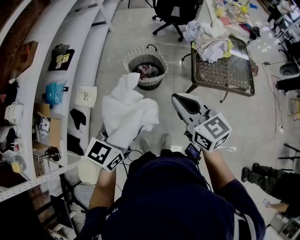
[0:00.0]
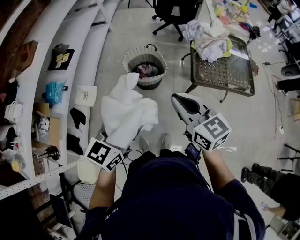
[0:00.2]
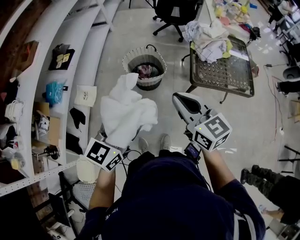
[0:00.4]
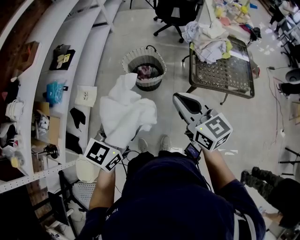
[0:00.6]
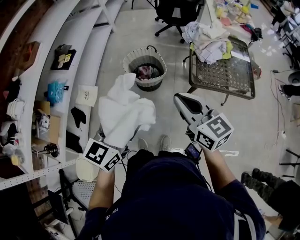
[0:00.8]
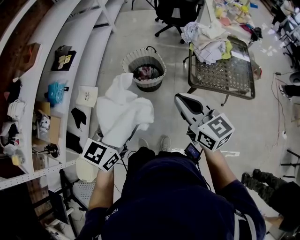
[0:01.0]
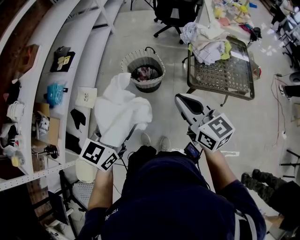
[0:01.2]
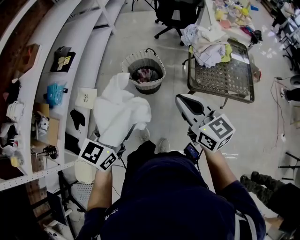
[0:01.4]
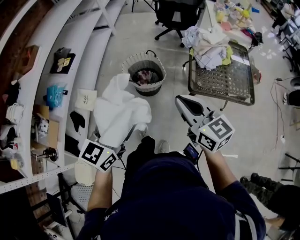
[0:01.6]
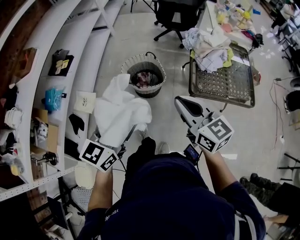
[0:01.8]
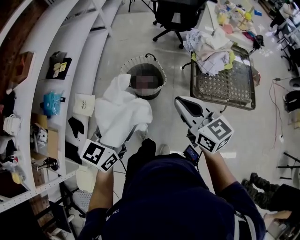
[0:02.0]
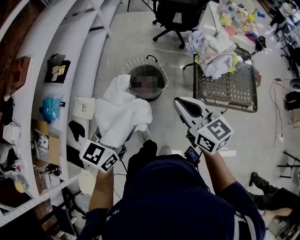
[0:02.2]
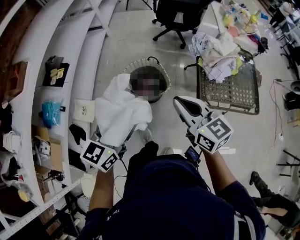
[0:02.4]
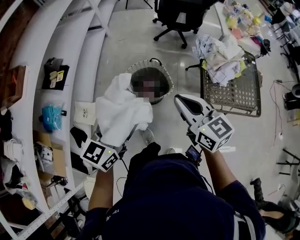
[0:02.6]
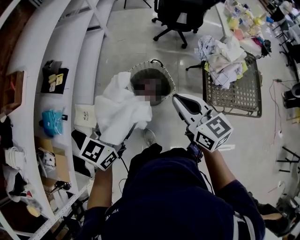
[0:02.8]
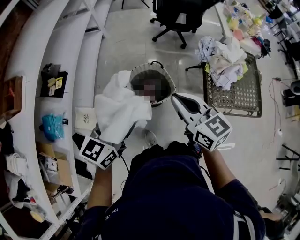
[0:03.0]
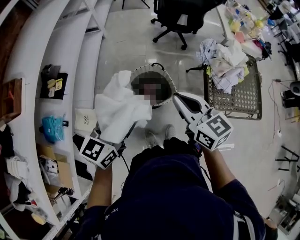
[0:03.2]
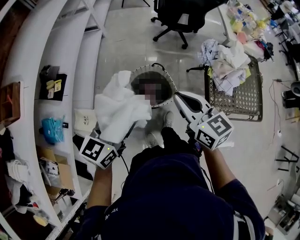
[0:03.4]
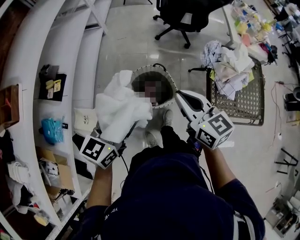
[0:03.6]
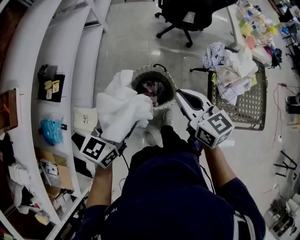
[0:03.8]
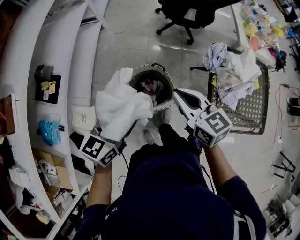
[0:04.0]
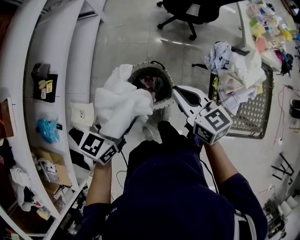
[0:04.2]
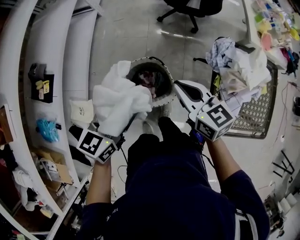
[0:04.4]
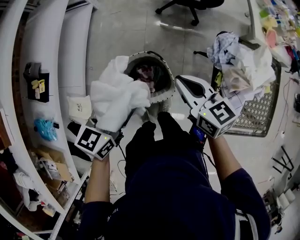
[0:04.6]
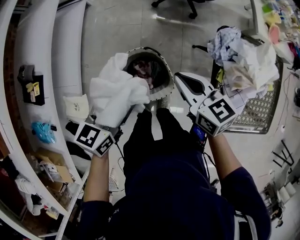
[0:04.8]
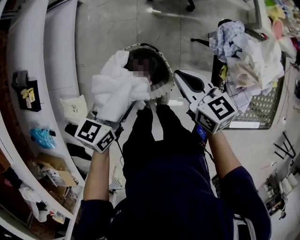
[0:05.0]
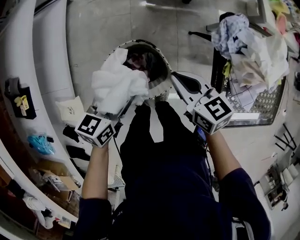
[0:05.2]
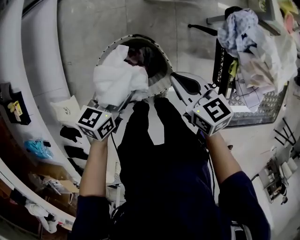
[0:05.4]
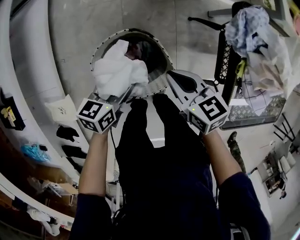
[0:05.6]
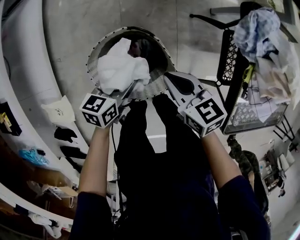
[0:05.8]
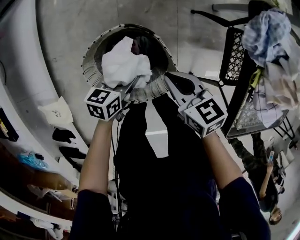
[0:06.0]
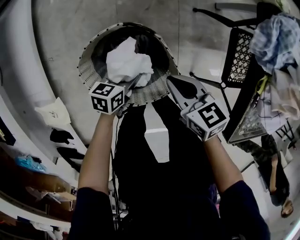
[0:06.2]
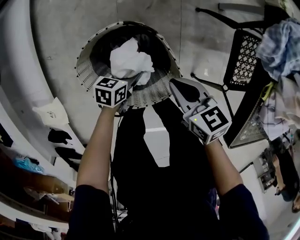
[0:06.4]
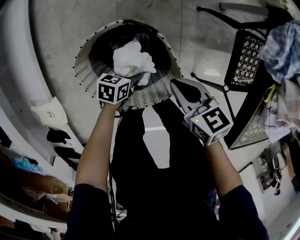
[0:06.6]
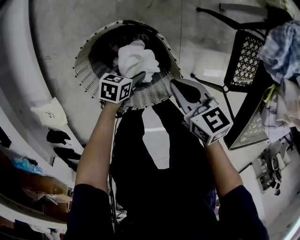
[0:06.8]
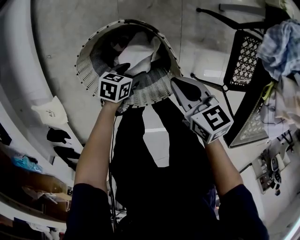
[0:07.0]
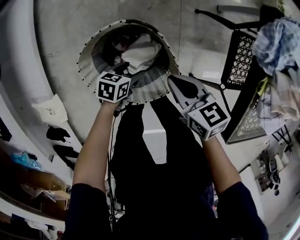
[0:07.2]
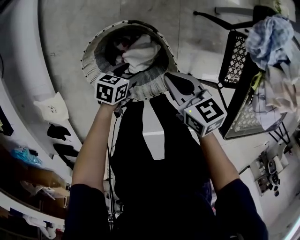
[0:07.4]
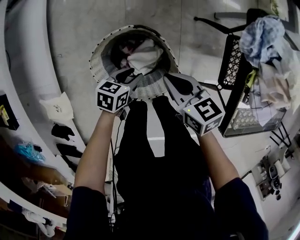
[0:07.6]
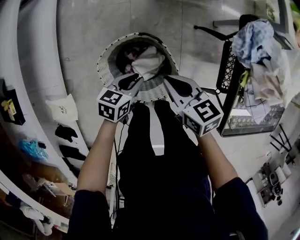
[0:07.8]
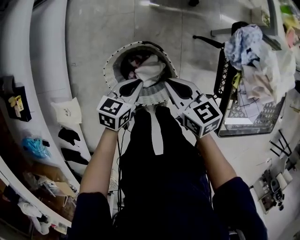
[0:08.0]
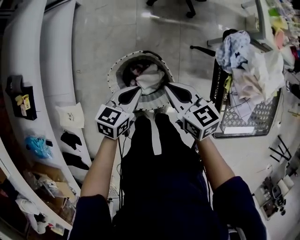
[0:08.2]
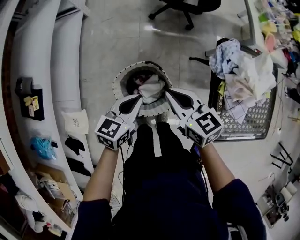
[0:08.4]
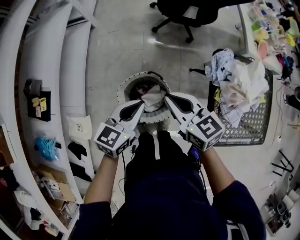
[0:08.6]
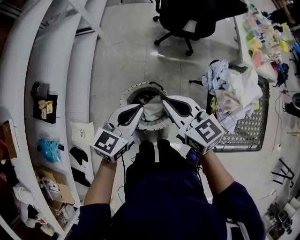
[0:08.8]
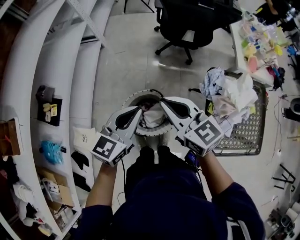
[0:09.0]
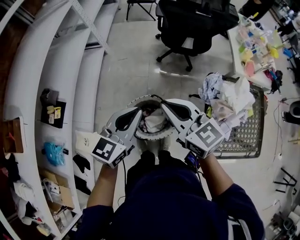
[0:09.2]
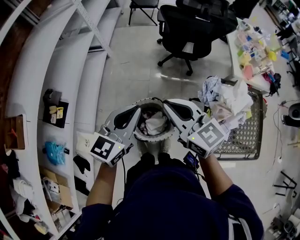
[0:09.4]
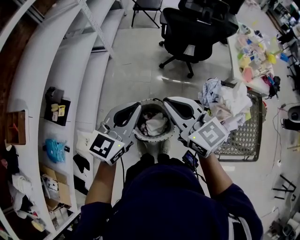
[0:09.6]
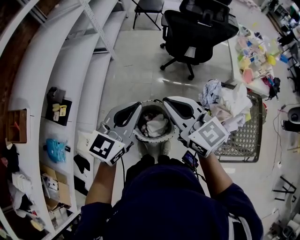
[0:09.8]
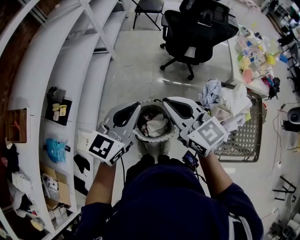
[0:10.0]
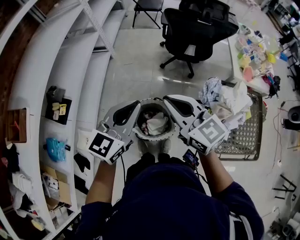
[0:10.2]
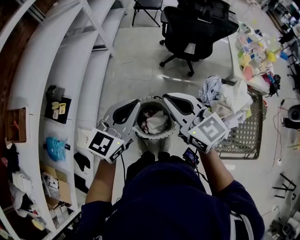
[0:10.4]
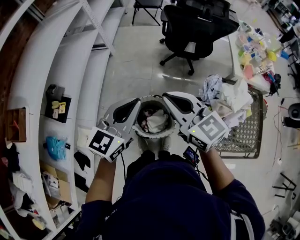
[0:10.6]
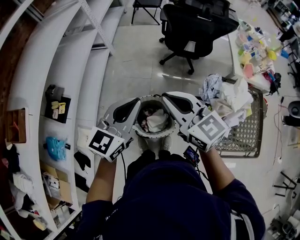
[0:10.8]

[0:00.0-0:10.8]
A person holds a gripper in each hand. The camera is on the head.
0:00.0 to 0:01.6: The right gripper heads to the right, covering about 5 cm.
0:01.6 to 0:03.0: The grippers both shift forward and to the left by roughly 30 cm.
0:03.0 to 0:04.6: The grippers both shift forward and downward by some 30 cm.
0:04.6 to 0:06.2: The grippers both shift downward by some 40 cm. The left gripper turns by about 30 degrees; the right gripper swivels roughly 20 degrees.
0:06.2 to 0:07.8: Both grippers move upward, about 10 cm. The left gripper closes its fingers.
0:07.8 to 0:09.2: Both grippers travel together upward, some 40 cm. The right gripper changes its angle by some 40 degrees. Meanwhile the left gripper swivels some 40 degrees.
0:09.2 to 0:10.8: The left gripper moves upward, approximately 5 cm.

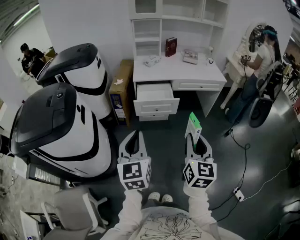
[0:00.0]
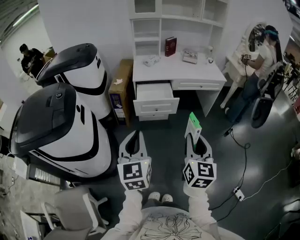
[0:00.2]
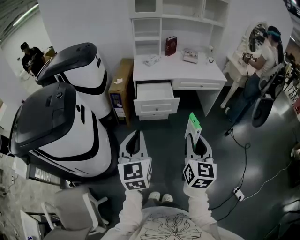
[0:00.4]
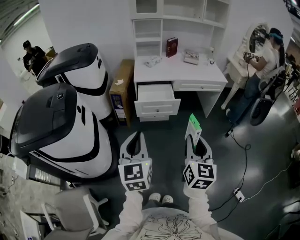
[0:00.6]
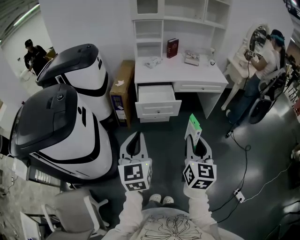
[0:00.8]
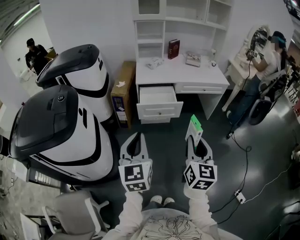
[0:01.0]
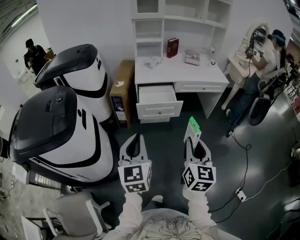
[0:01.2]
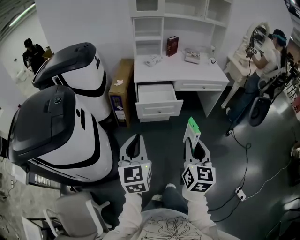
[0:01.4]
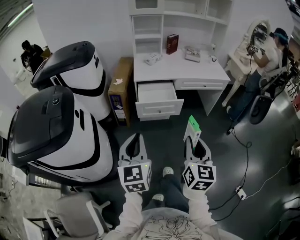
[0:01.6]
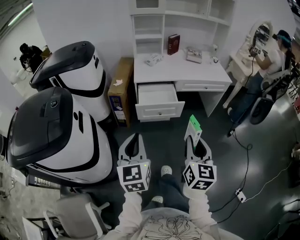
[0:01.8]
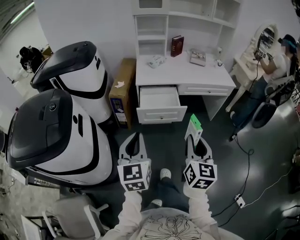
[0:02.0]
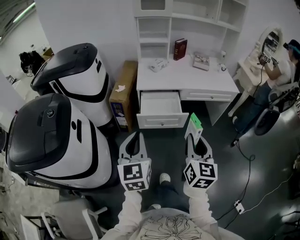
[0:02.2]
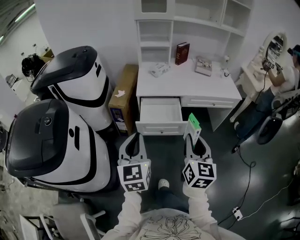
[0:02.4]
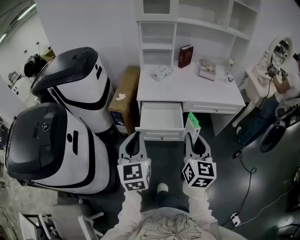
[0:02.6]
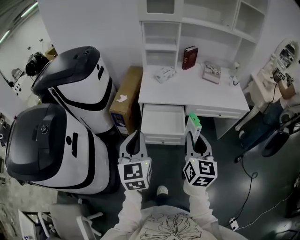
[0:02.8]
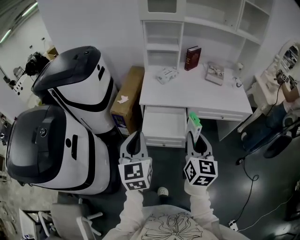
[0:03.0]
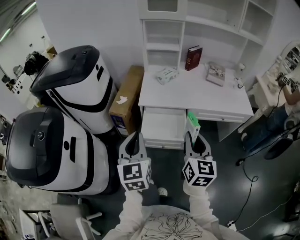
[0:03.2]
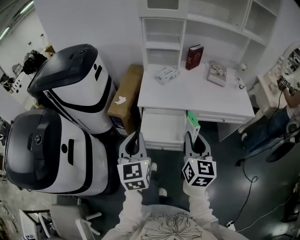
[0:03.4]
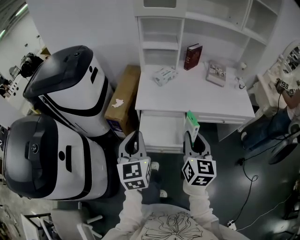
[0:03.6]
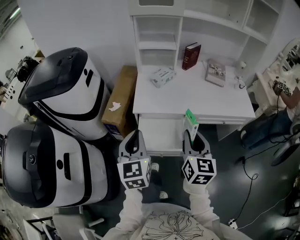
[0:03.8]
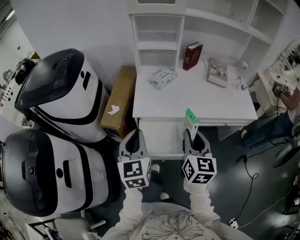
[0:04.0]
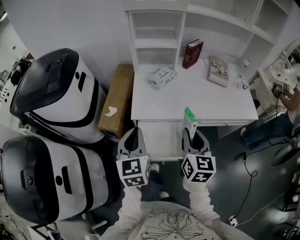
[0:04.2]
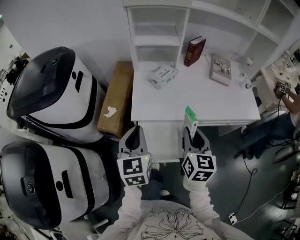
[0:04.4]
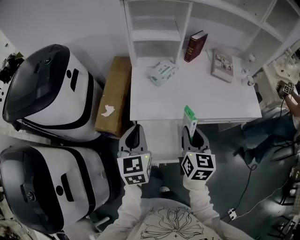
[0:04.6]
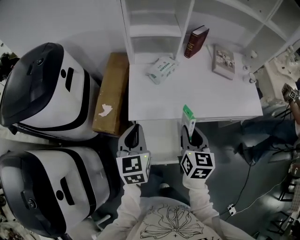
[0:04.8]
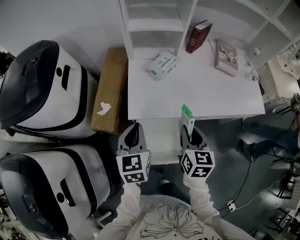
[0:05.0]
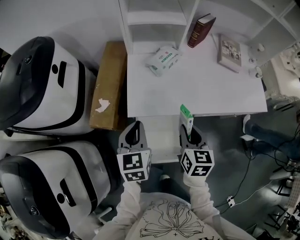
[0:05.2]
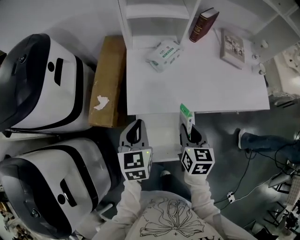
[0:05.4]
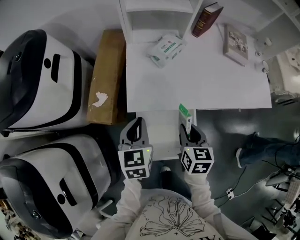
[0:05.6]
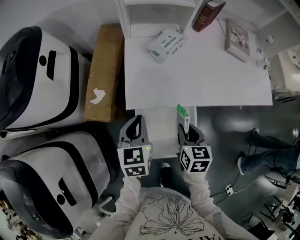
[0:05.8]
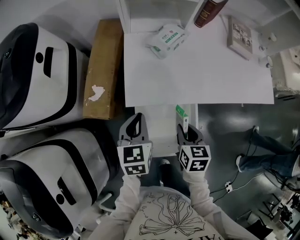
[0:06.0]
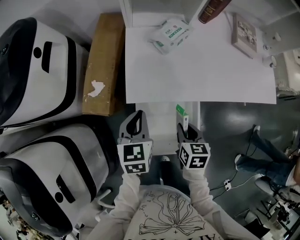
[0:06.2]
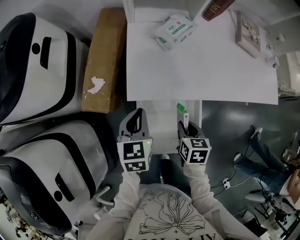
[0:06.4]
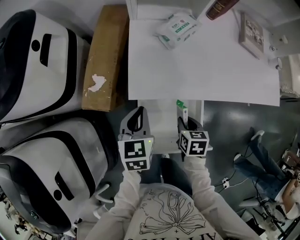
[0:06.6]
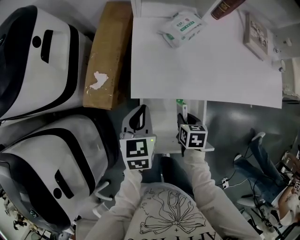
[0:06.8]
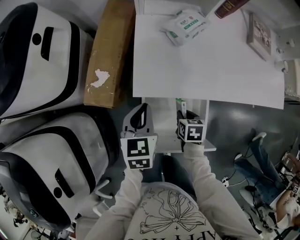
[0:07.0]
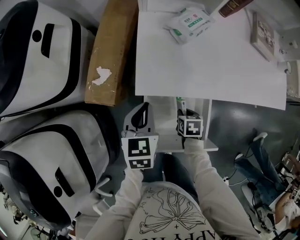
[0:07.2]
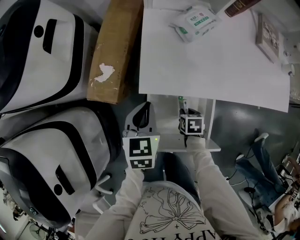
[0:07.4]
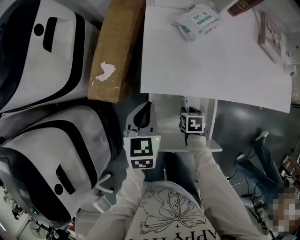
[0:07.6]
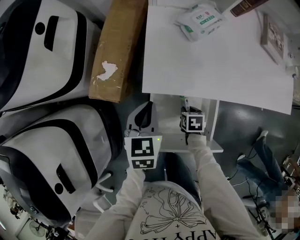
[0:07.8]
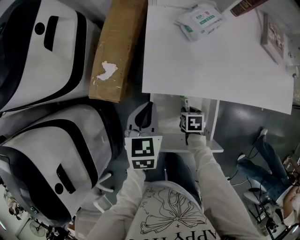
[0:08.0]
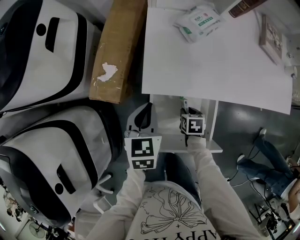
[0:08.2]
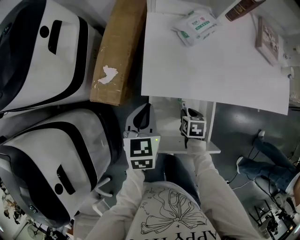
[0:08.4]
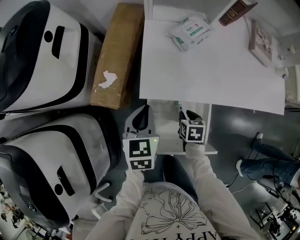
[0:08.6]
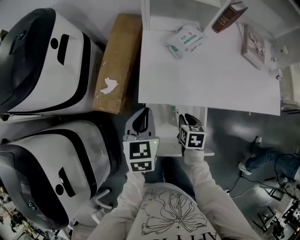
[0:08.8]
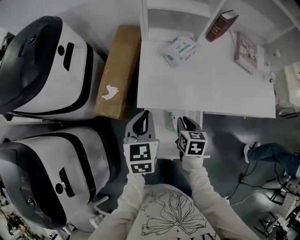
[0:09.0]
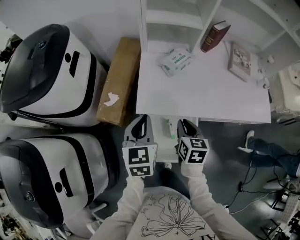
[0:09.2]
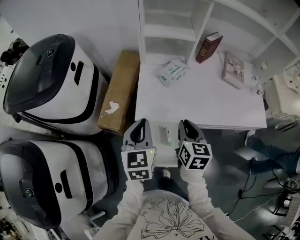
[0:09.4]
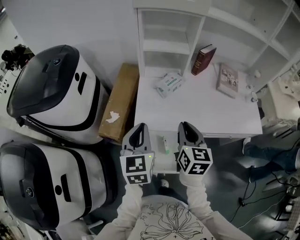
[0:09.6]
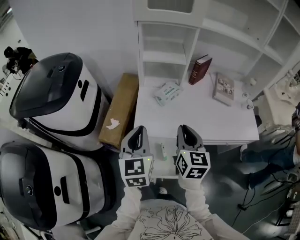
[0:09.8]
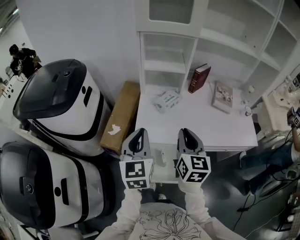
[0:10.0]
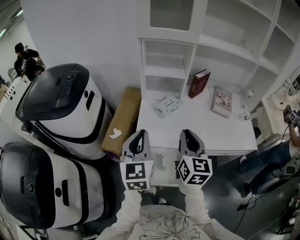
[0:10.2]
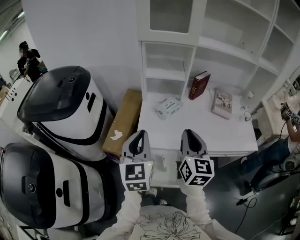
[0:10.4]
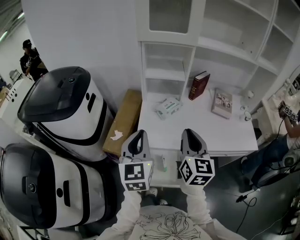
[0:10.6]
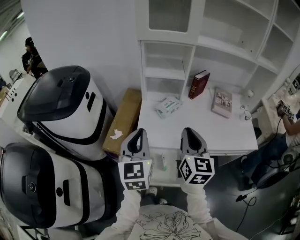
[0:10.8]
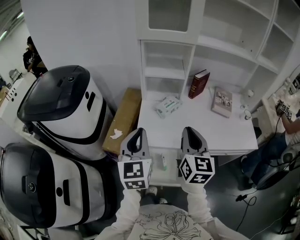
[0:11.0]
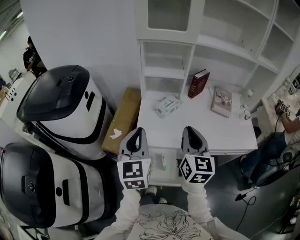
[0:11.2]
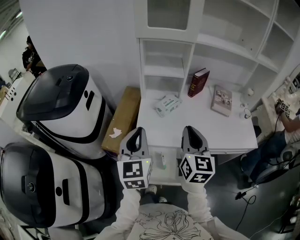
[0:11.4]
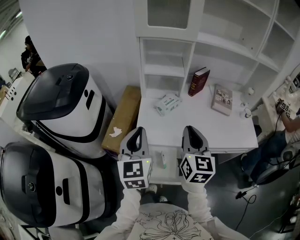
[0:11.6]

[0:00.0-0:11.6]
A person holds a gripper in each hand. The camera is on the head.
0:00.0 to 0:01.4: The right gripper shifts by roughly 5 cm, while the left gripper changes place by approximately 5 cm.
0:01.4 to 0:02.8: Both grippers move forward, some 30 cm.
0:02.8 to 0:04.4: Both grippers travel together forward, roughly 30 cm.
0:04.4 to 0:05.8: The right gripper is displaced downward by about 20 cm, and changes its angle by about 30 degrees; the left gripper is displaced downward and forward by roughly 20 cm.
0:05.8 to 0:07.2: The left gripper travels downward by approximately 5 cm. Meanwhile the right gripper shifts about 20 cm downward, and swivels approximately 30 degrees.
0:07.2 to 0:08.8: The right gripper is displaced upward by roughly 10 cm. The left gripper is displaced upward by about 5 cm.
0:08.8 to 0:10.2: The left gripper moves upward, roughly 25 cm, and changes its angle by roughly 30 degrees. The right gripper travels upward by about 40 cm, and tips its fingers upward by approximately 50 degrees.
0:10.2 to 0:11.6: The grippers stay close to where they were, moving slightly.

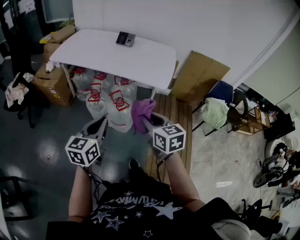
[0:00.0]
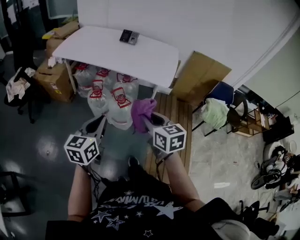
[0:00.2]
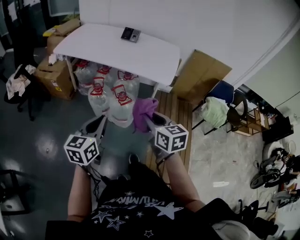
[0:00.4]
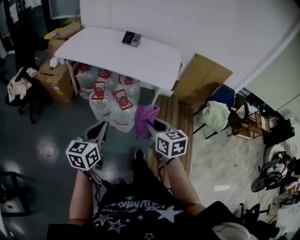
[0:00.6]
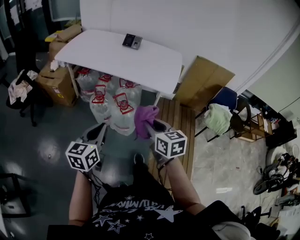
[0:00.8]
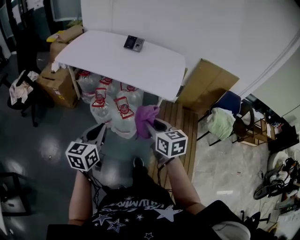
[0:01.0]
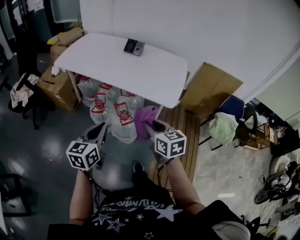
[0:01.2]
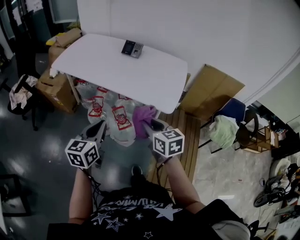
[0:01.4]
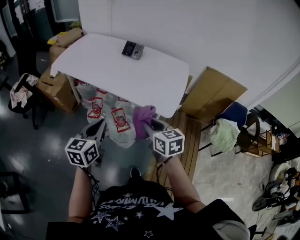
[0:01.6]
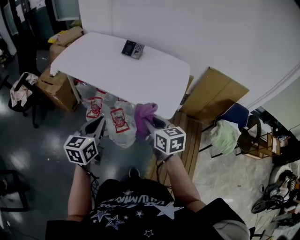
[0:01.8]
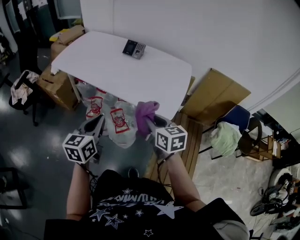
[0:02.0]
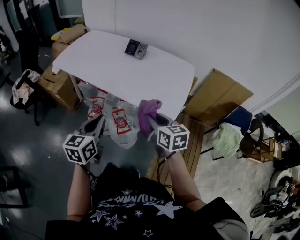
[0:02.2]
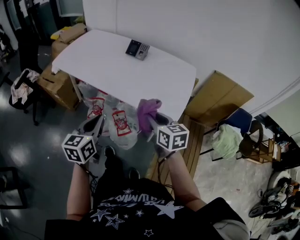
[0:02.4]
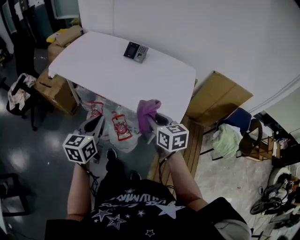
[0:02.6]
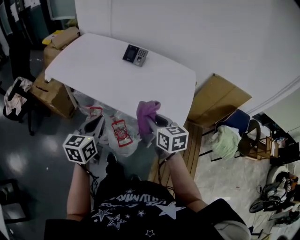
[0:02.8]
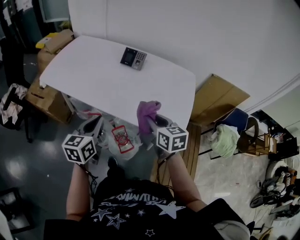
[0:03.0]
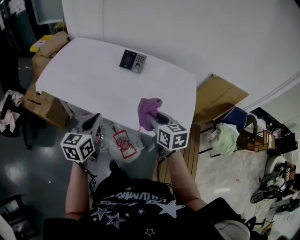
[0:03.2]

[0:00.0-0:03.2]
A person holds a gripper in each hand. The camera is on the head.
0:00.0 to 0:01.6: The grippers both shift forward by some 20 cm.
0:01.6 to 0:03.2: Both grippers move forward, roughly 25 cm.
